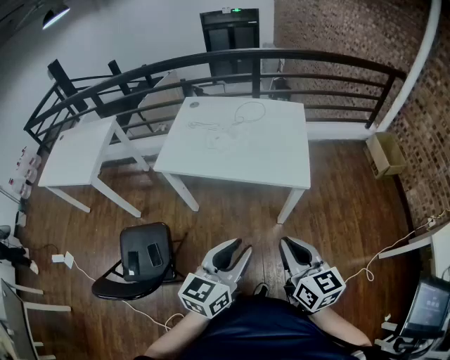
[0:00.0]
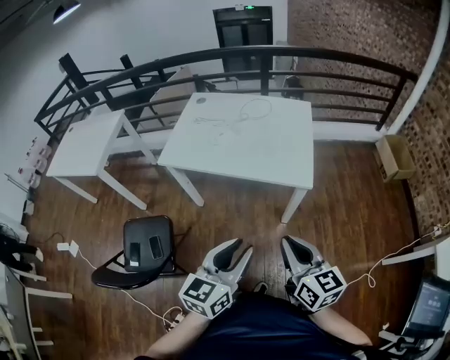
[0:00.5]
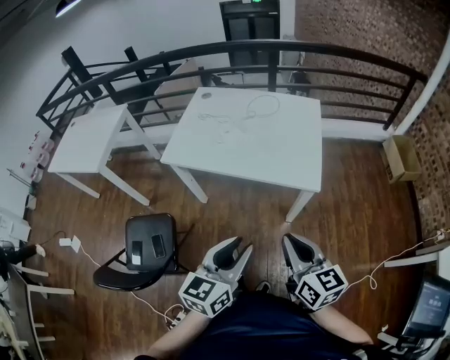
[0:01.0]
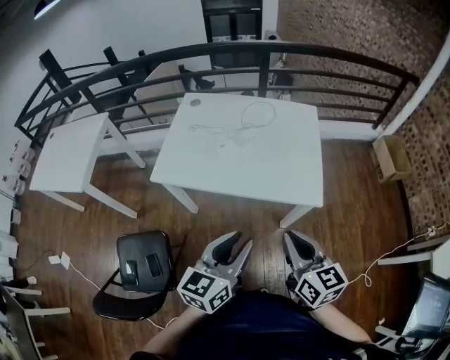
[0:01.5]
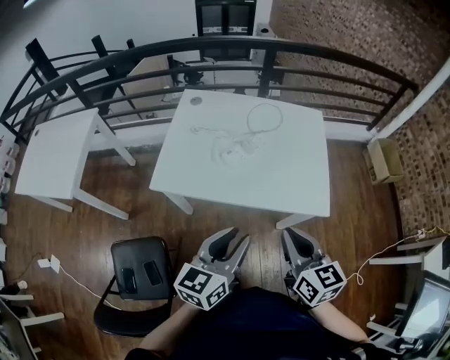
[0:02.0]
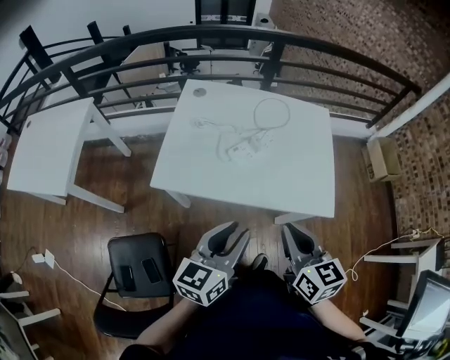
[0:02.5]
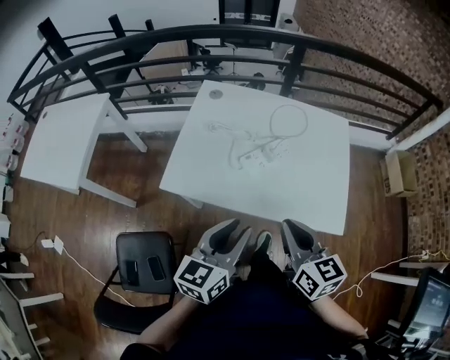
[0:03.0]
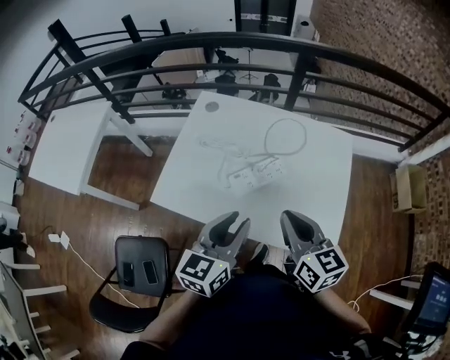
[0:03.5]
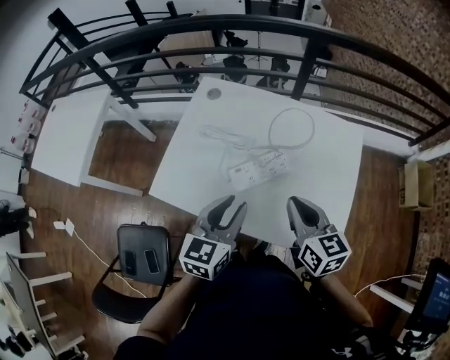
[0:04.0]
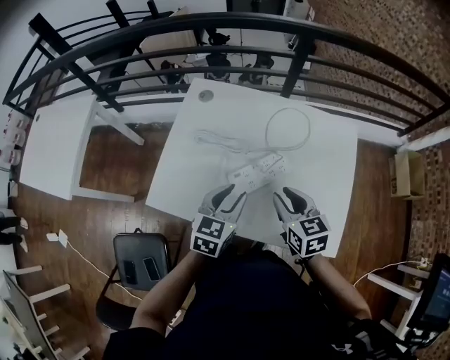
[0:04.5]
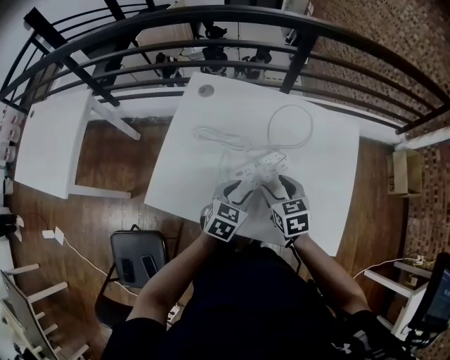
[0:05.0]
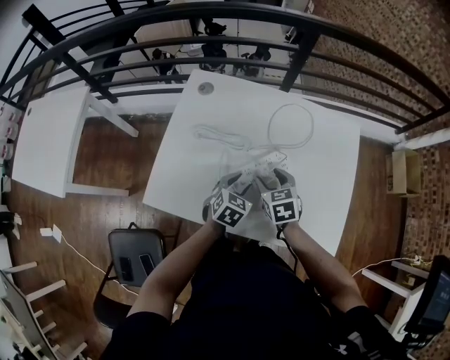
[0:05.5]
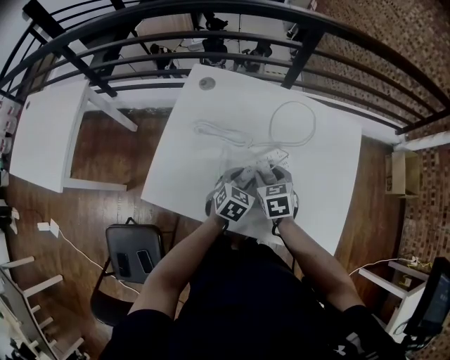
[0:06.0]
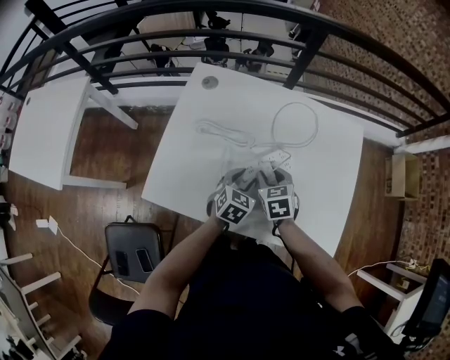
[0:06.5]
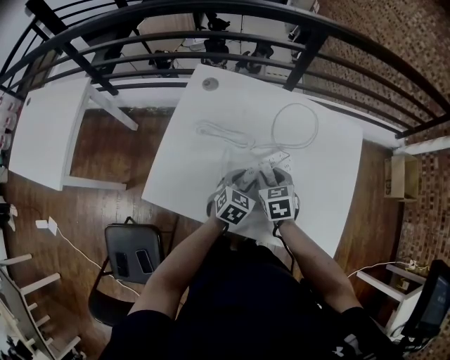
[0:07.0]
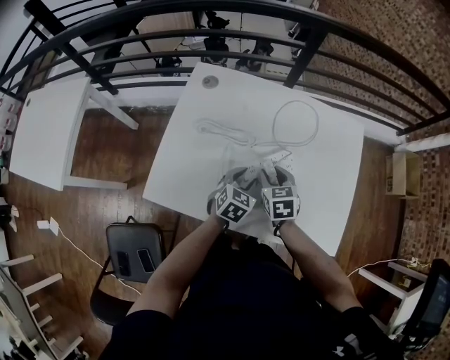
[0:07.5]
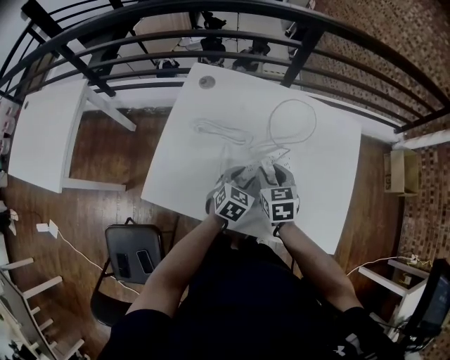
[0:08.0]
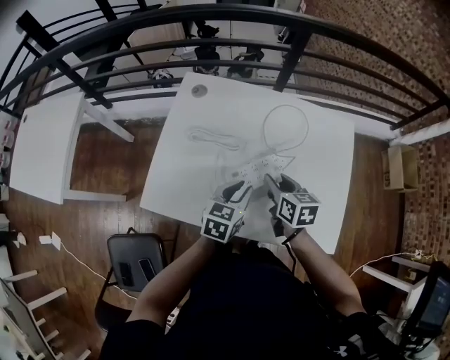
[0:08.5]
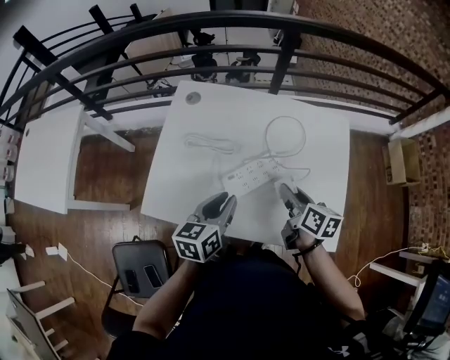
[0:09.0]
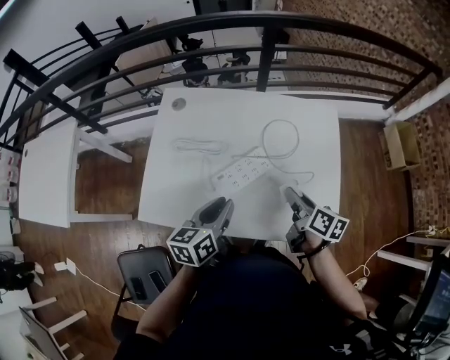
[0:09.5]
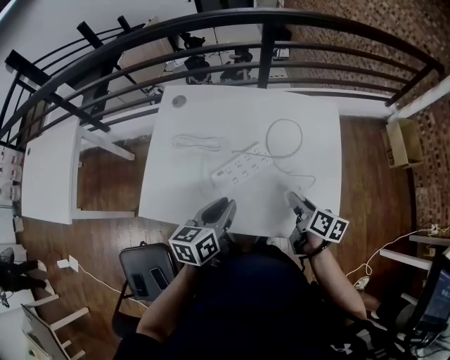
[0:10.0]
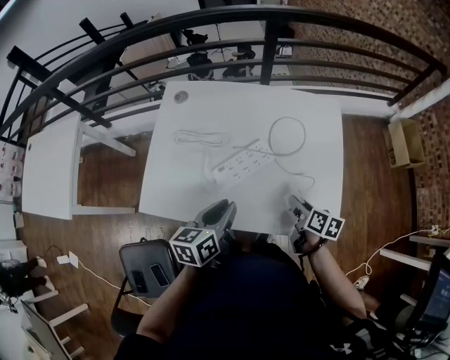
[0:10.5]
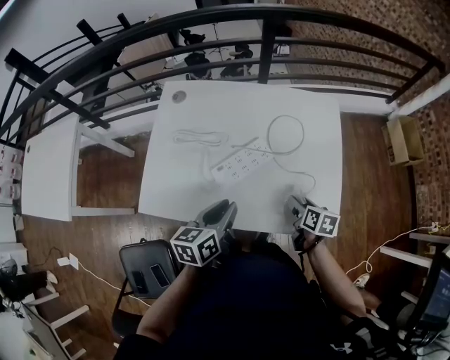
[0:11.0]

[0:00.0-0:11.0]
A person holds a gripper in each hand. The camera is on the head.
0:00.0 to 0:02.0: Both grippers travel together forward and to the left, approximately 20 cm.
0:02.0 to 0:03.5: Both grippers move forward, about 20 cm.
0:03.5 to 0:05.5: The grippers both shift downward and forward by about 25 cm. The right gripper points its fingers approximately 30 degrees further downward, and opens. Meanwhile the left gripper tilts its fingers approximately 30 degrees downward.
0:05.5 to 0:07.5: The right gripper closes.
0:07.5 to 0:09.0: The left gripper goes about 15 cm upward, and swivels approximately 40 degrees; the right gripper moves upward and to the right, approximately 15 cm, and twists roughly 40 degrees clockwise, seen from behind.
0:09.0 to 0:11.0: The left gripper shifts by some 5 cm; the right gripper moves downward, to the right and backward, some 15 cm.

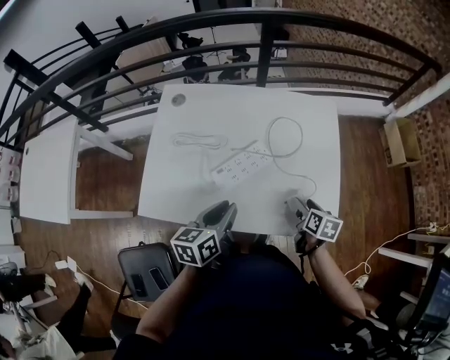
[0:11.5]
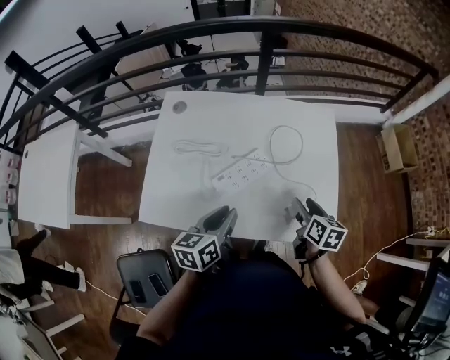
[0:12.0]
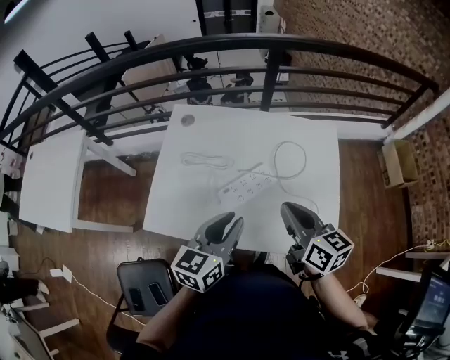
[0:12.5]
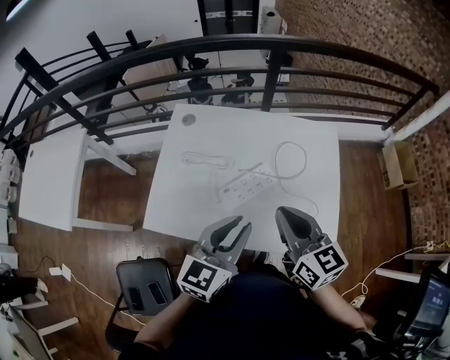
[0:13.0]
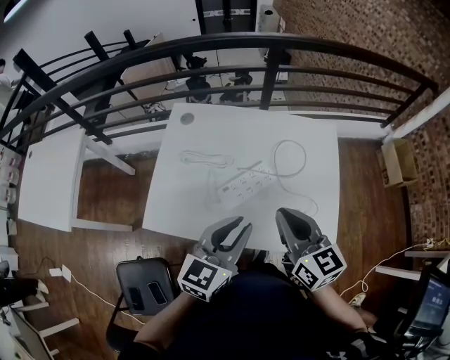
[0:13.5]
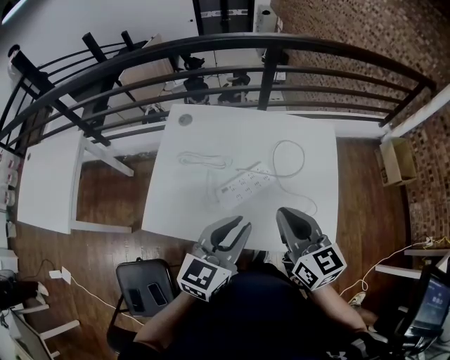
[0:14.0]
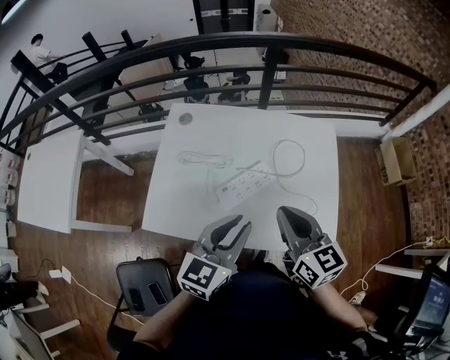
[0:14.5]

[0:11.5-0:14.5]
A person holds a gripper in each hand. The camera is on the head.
0:11.5 to 0:13.0: The right gripper goes some 30 cm upward and to the left, points its fingers about 40 degrees further upward, and closes; the left gripper moves upward, some 10 cm, and turns by approximately 30 degrees.
0:13.0 to 0:14.5: There are only small adjustments of the grippers.

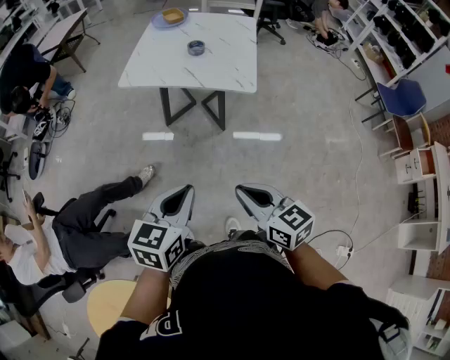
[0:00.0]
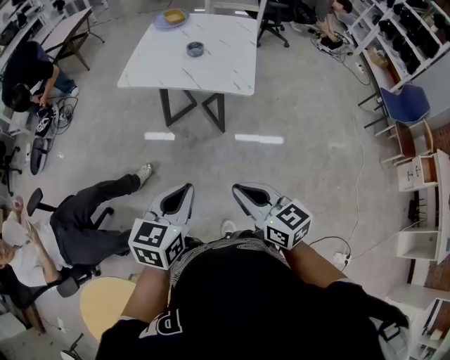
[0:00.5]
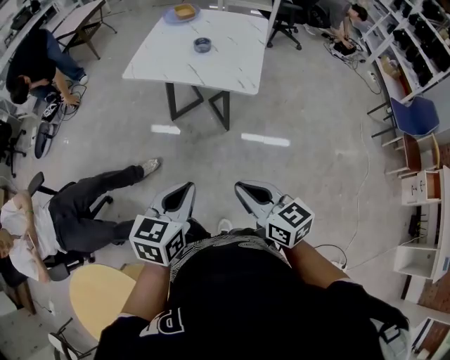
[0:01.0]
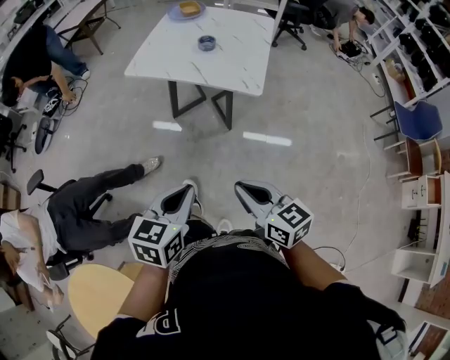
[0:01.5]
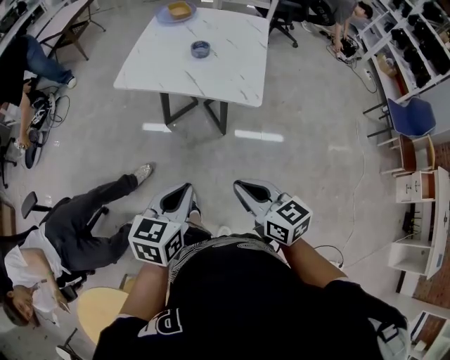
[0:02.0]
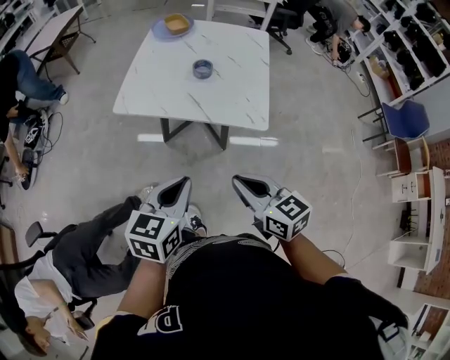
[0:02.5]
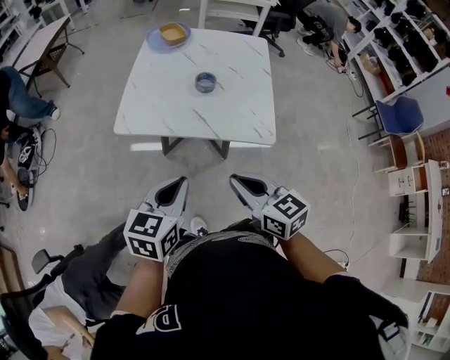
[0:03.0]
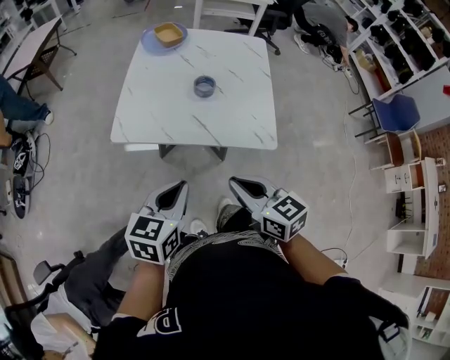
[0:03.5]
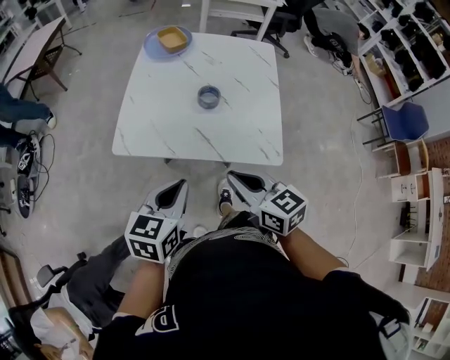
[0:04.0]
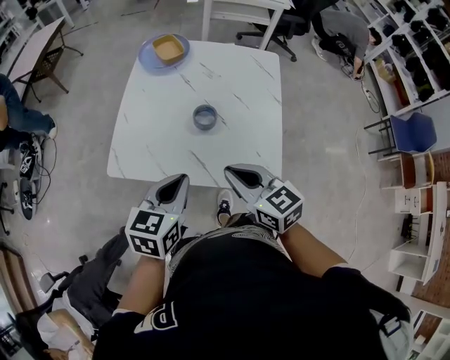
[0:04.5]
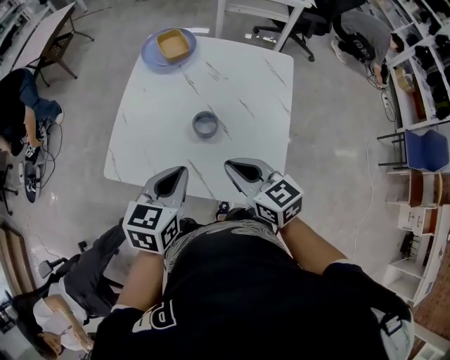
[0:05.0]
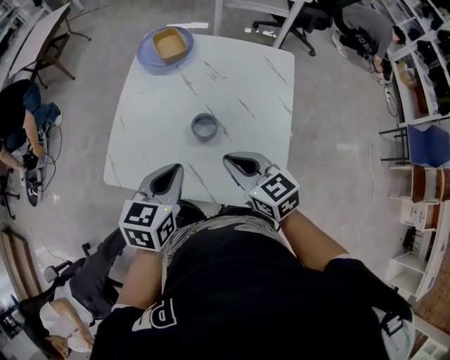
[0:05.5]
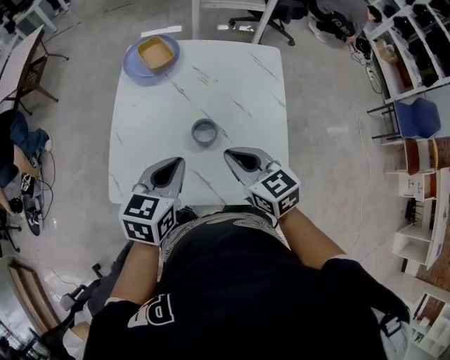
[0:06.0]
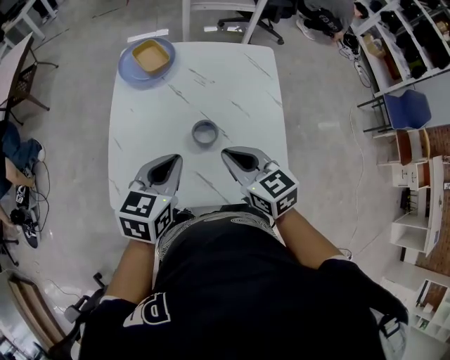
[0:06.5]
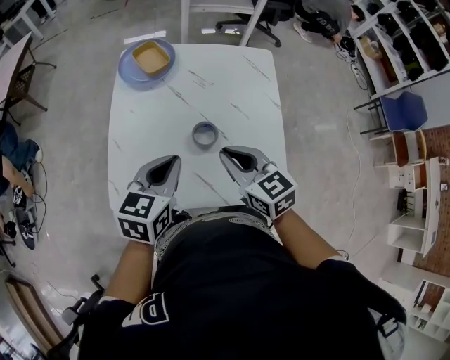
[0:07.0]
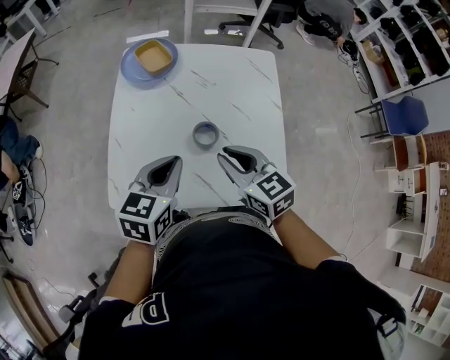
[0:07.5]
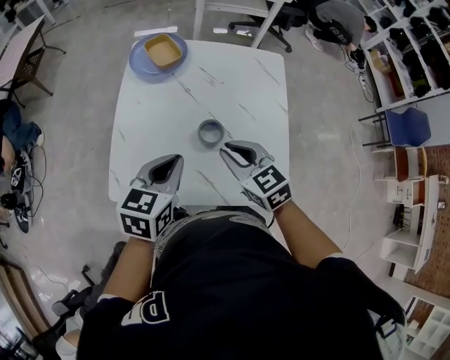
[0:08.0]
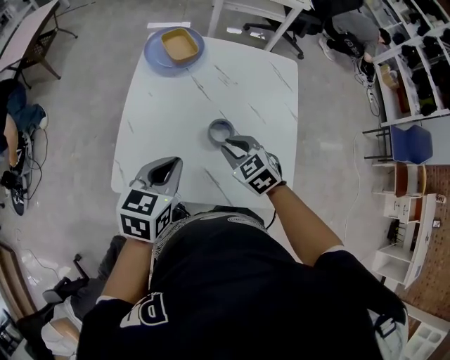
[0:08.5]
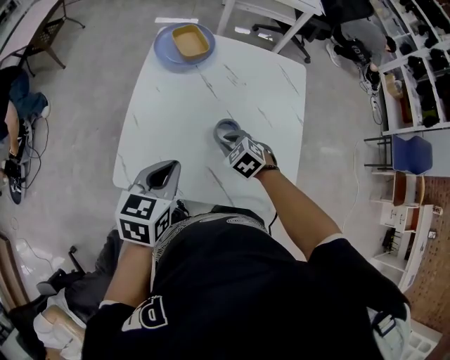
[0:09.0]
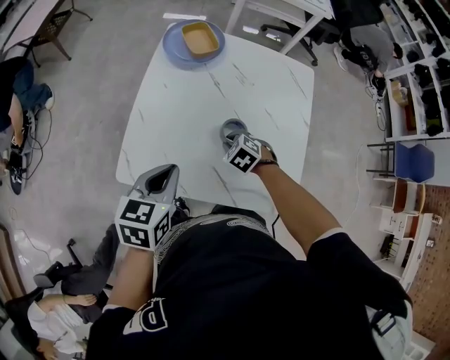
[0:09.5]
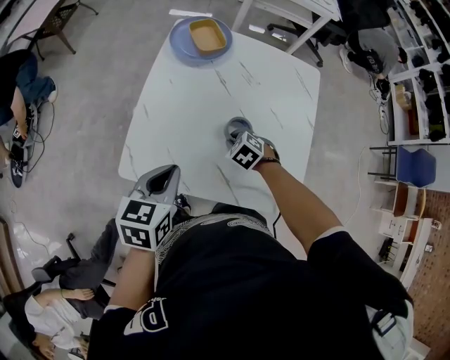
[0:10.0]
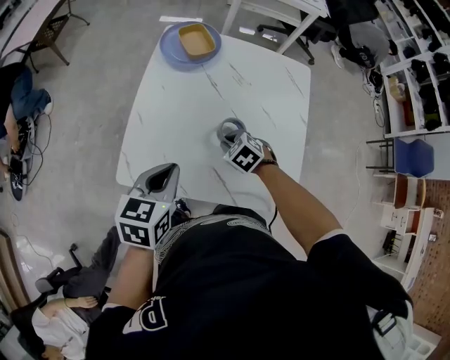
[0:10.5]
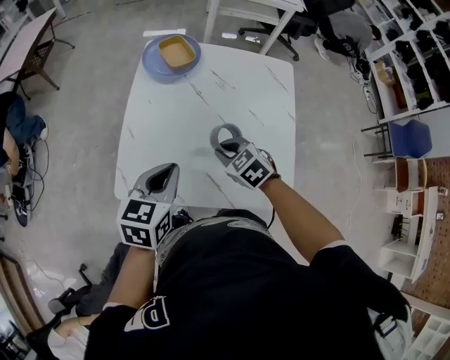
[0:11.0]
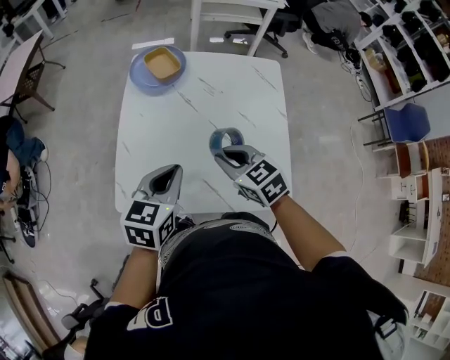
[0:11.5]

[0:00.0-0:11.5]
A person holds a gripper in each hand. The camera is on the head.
0:00.0 to 0:02.0: The two grippers go about 10 cm forward.
0:02.0 to 0:04.0: The grippers both shift forward by some 30 cm.
0:04.0 to 0:06.0: The grippers both shift forward by roughly 25 cm.
0:06.0 to 0:07.5: The grippers make only small movements.
0:07.5 to 0:09.5: The right gripper moves downward, approximately 20 cm, and angles its fingers downward, by some 40 degrees; the left gripper moves to the left, some 10 cm.
0:09.5 to 0:11.5: The left gripper heads to the right, covering roughly 5 cm, while the right gripper shifts some 20 cm upward, and tilts its fingers about 30 degrees upward.

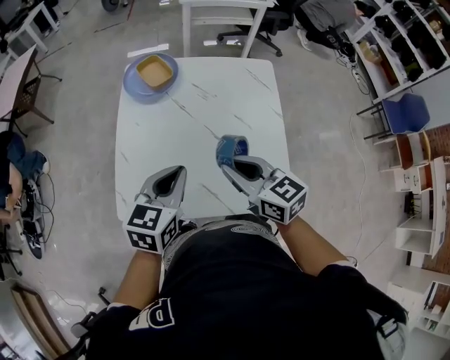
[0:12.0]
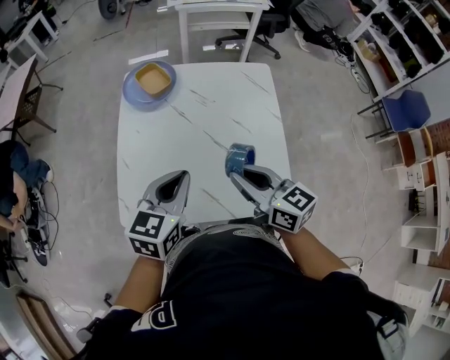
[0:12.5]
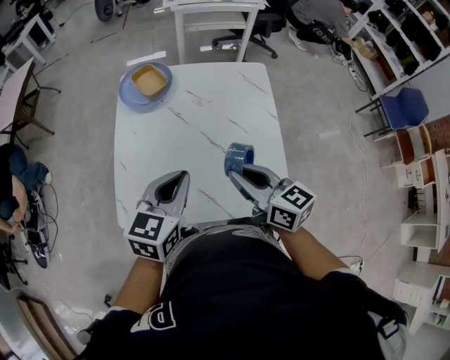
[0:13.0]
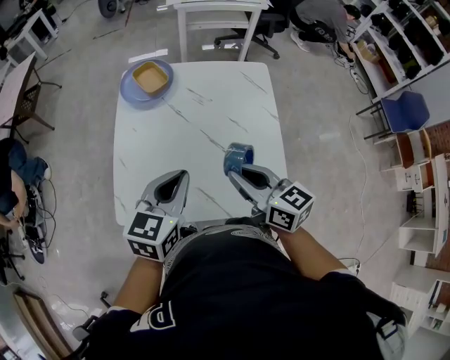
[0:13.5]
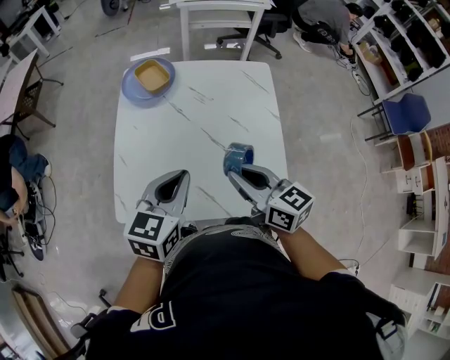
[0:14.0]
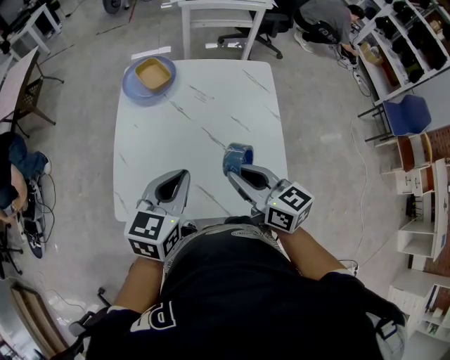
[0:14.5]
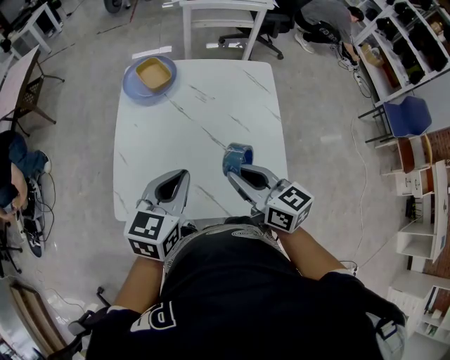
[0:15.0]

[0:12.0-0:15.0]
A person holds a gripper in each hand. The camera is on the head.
0:12.0 to 0:13.5: There are only small adjustments of the grippers.
0:13.5 to 0:15.0: The two grippers keep their place.
